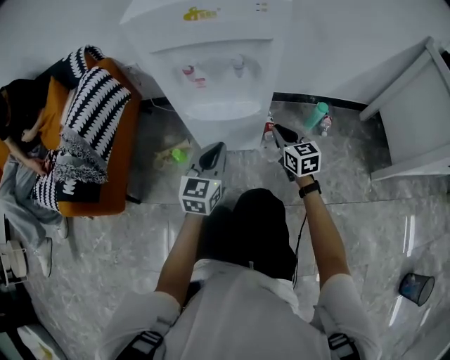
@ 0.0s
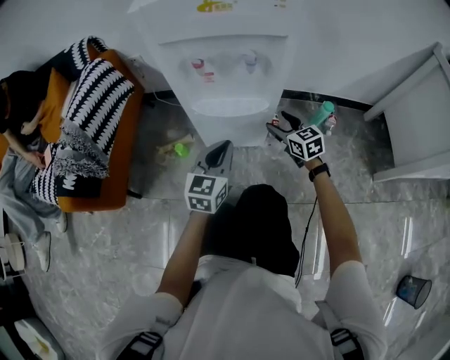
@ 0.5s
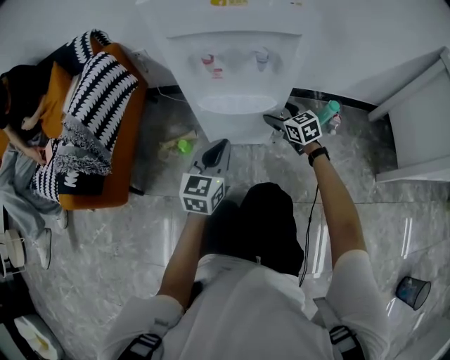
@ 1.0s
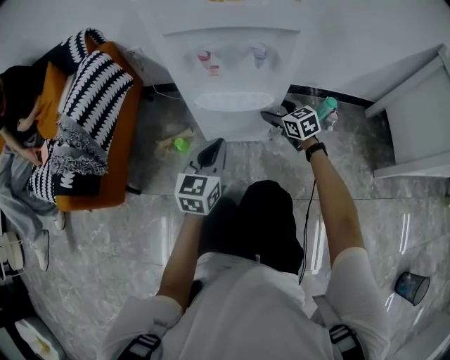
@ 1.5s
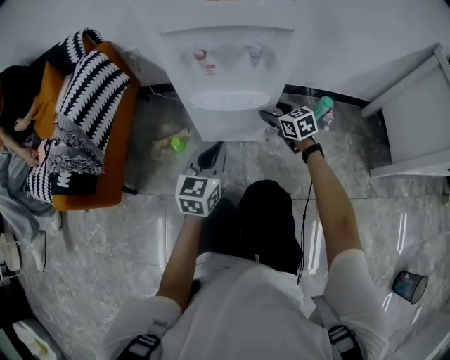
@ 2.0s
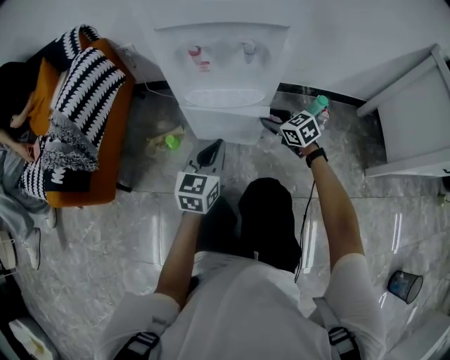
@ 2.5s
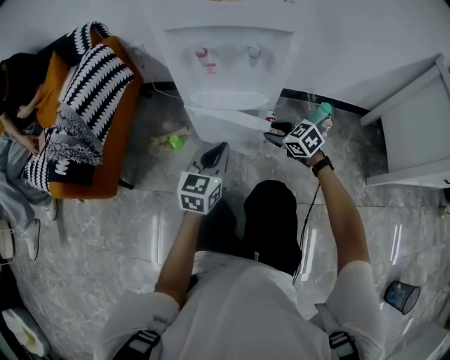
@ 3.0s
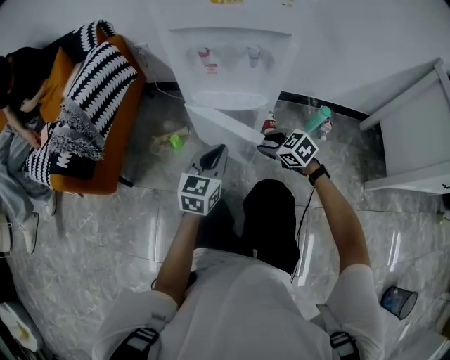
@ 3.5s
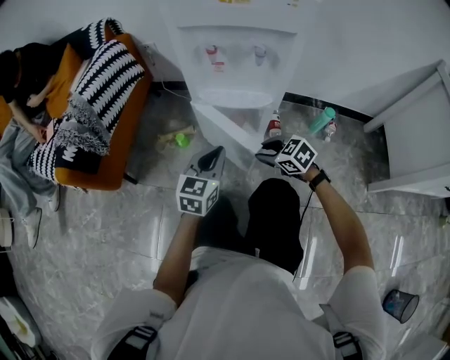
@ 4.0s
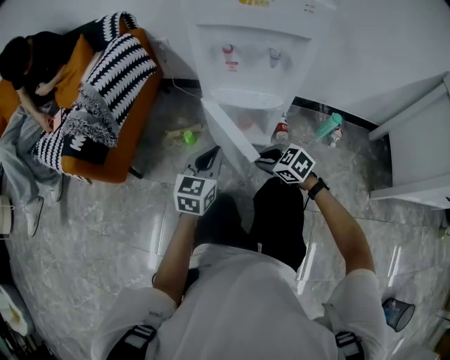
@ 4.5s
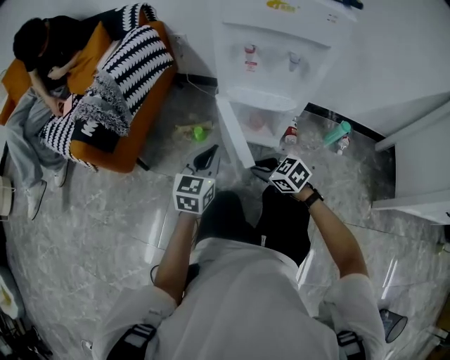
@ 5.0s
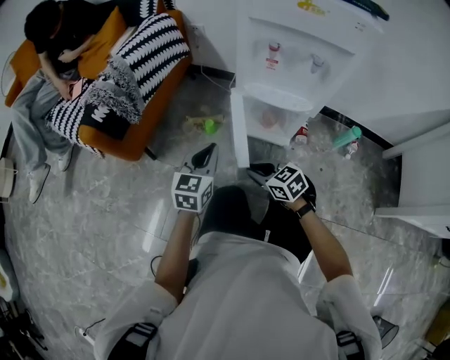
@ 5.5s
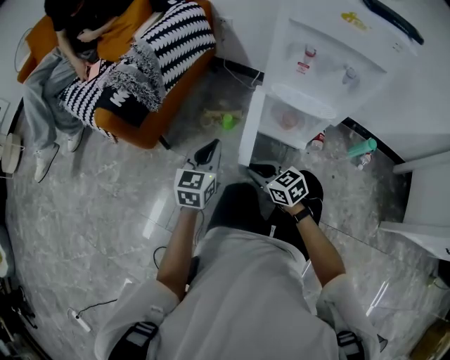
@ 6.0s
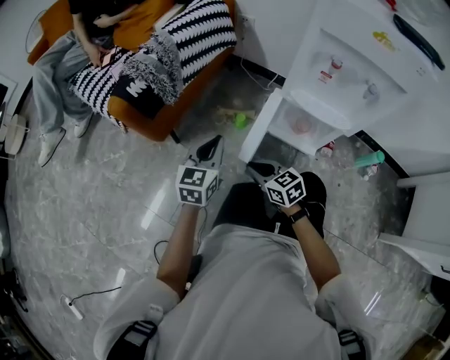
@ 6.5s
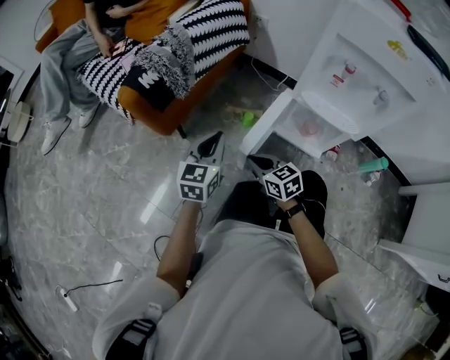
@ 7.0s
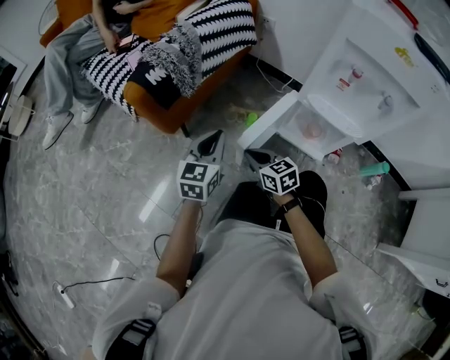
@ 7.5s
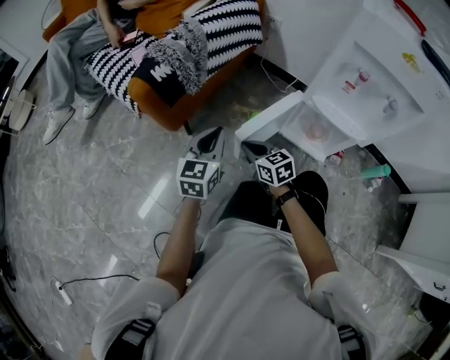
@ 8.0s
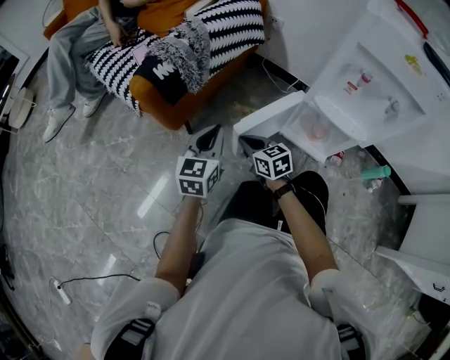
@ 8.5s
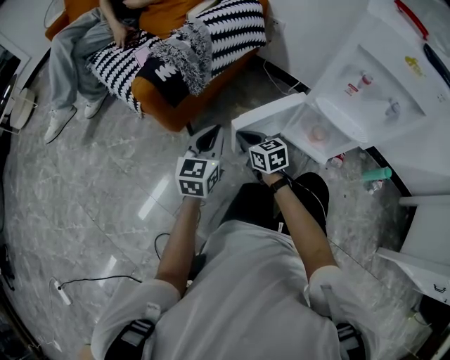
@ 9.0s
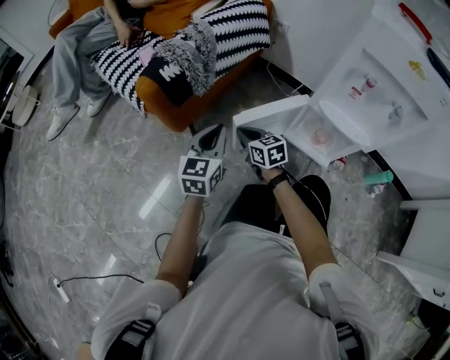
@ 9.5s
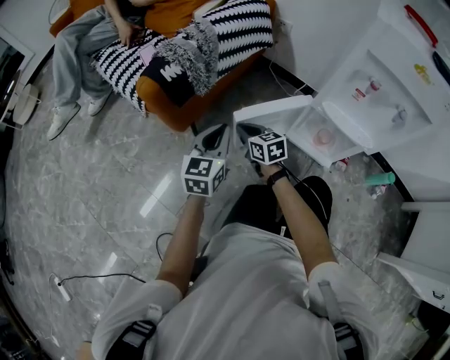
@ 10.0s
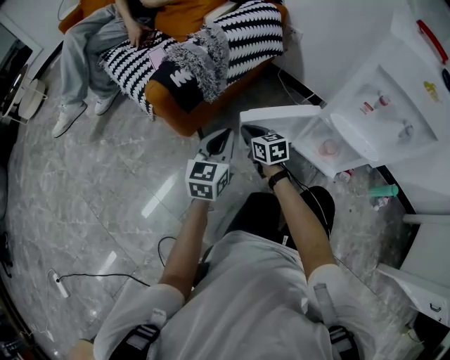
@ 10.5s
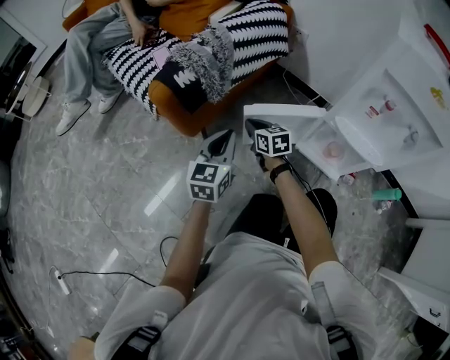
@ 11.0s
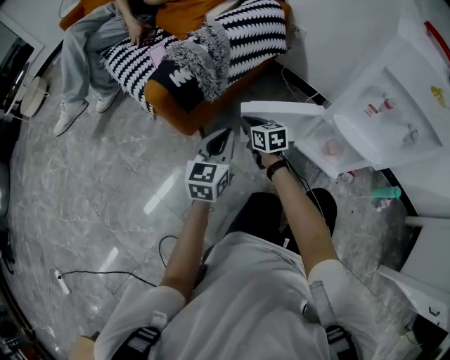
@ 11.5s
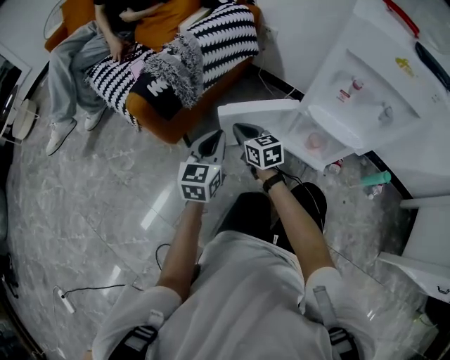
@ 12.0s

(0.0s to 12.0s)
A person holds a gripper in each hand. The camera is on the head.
0.0s - 2.0s: The right gripper heads forward, covering roughly 5 cm, and opens up.
2.0s - 4.0s: The right gripper heads backward and to the left, covering about 15 cm, turns by about 30 degrees, and closes its fingers.
4.0s - 6.0s: Both grippers move to the left, some 20 cm. The left gripper swivels roughly 20 degrees.
6.0s - 8.0s: The right gripper travels forward and to the left by about 15 cm; the left gripper goes approximately 10 cm to the left.
8.0s - 10.0s: The right gripper goes approximately 10 cm forward.
10.0s - 12.0s: The right gripper changes place by some 5 cm.

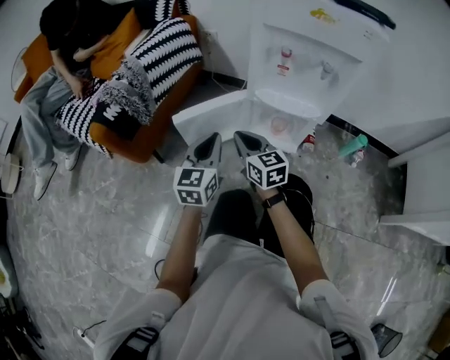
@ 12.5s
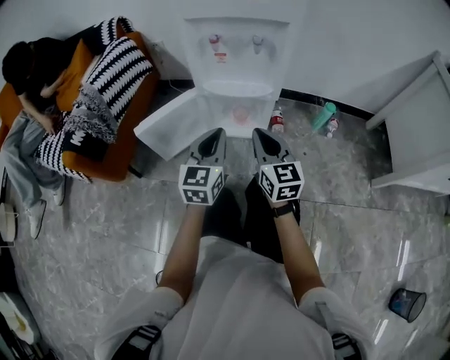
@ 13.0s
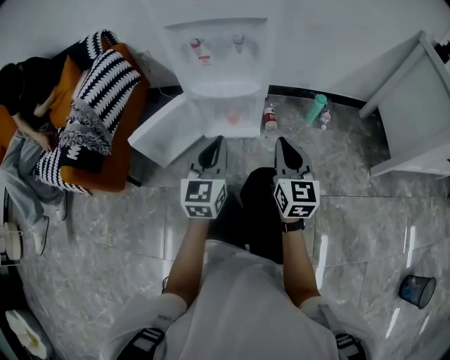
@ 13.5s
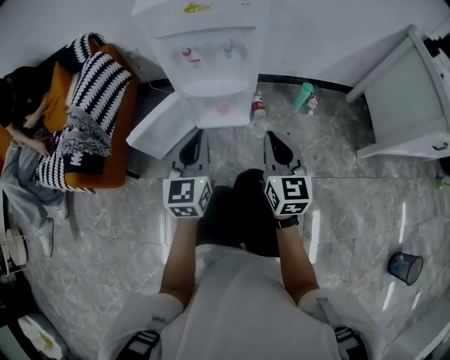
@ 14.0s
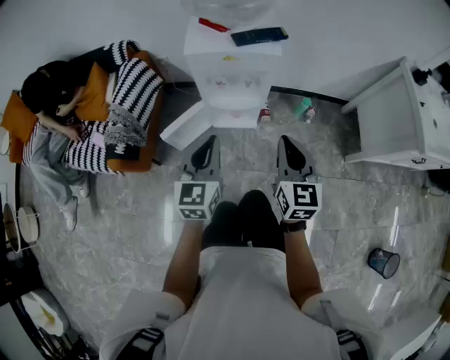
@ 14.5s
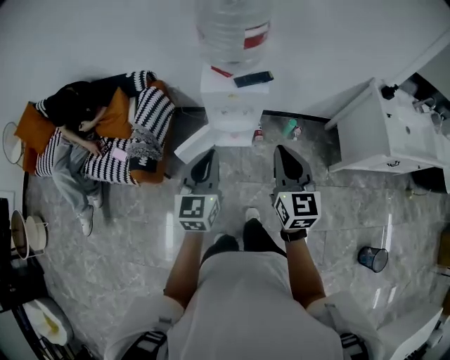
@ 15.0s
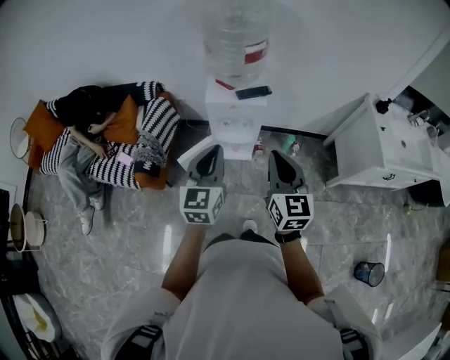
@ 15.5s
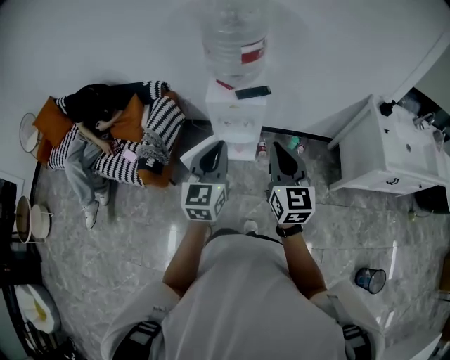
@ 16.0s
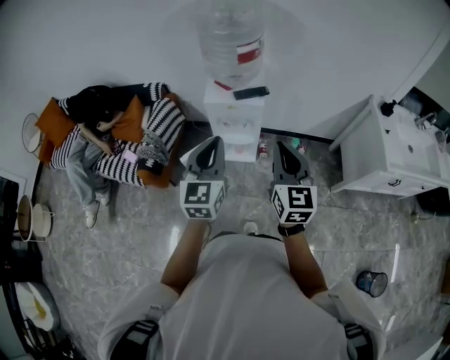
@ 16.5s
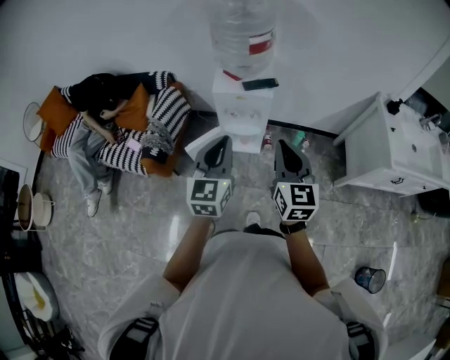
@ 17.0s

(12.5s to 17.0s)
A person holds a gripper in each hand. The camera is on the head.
12.5s - 14.5s: The two grippers go approximately 35 cm upward. The right gripper changes its angle by roughly 40 degrees.
14.5s - 17.0s: The grippers both shift upward by roughly 30 cm.

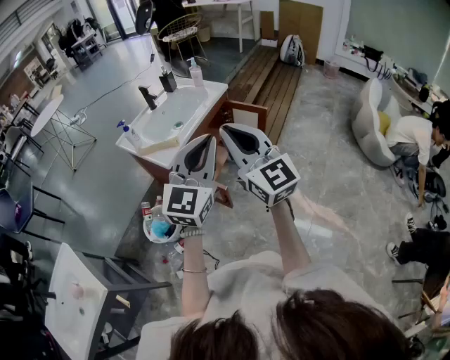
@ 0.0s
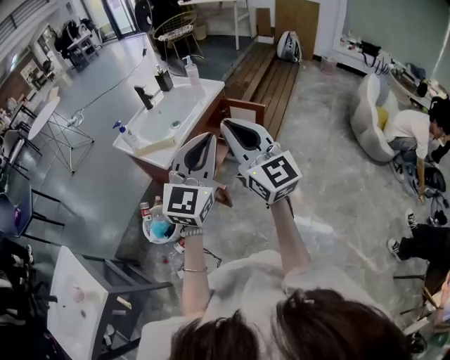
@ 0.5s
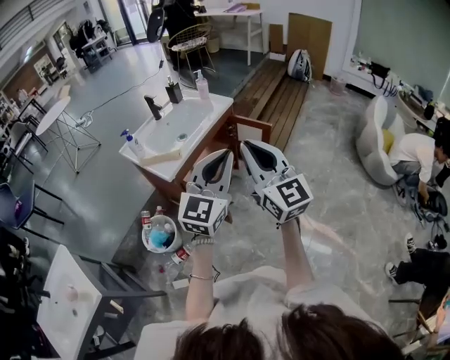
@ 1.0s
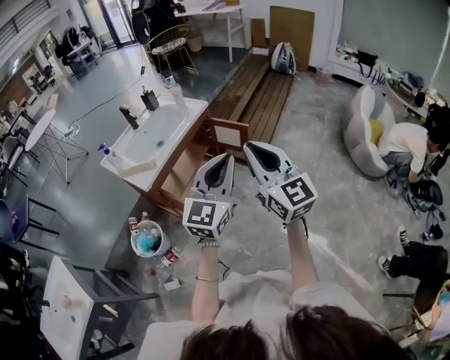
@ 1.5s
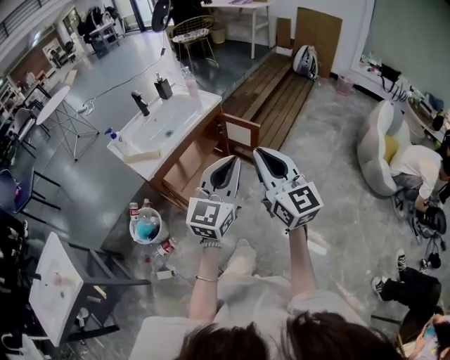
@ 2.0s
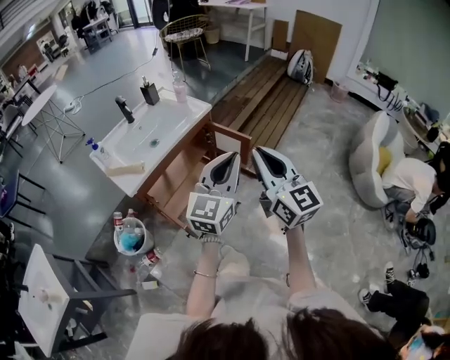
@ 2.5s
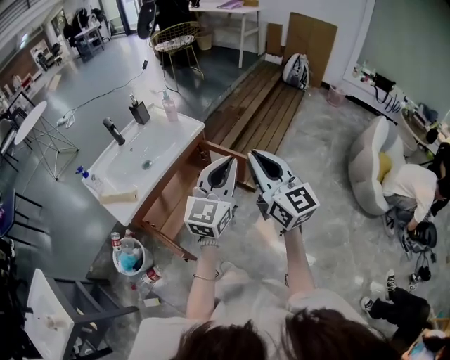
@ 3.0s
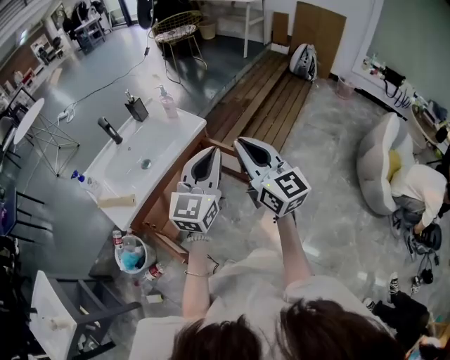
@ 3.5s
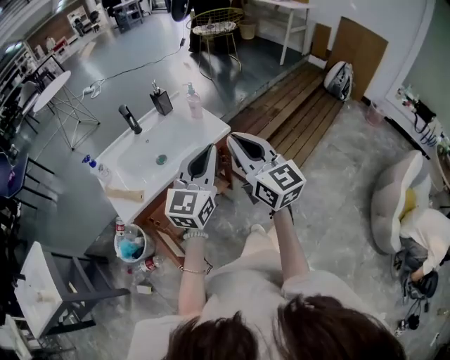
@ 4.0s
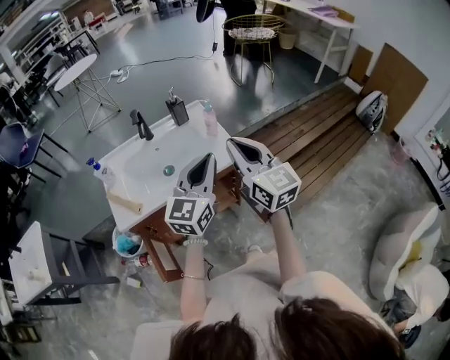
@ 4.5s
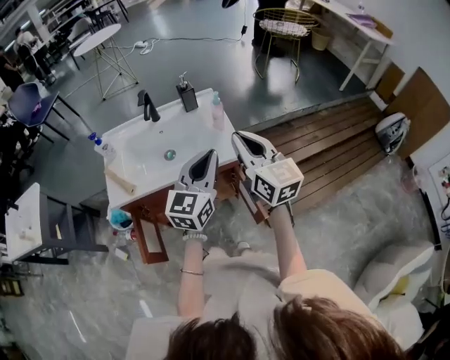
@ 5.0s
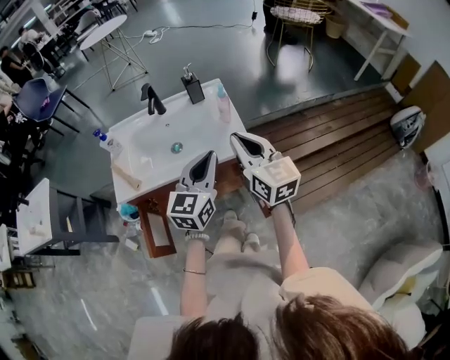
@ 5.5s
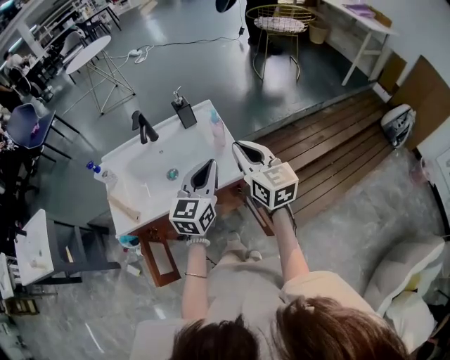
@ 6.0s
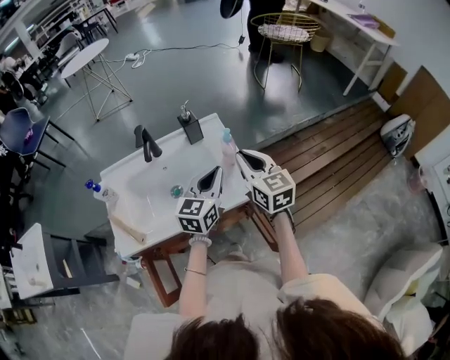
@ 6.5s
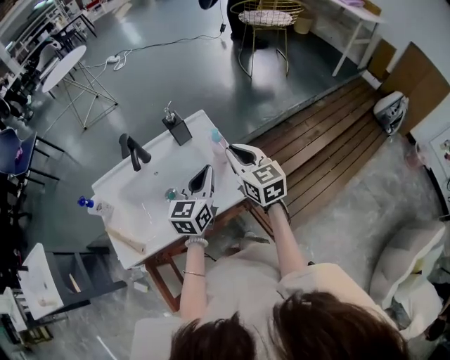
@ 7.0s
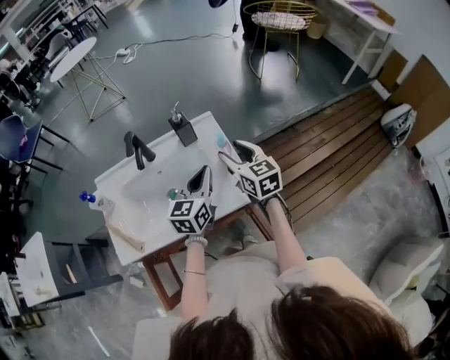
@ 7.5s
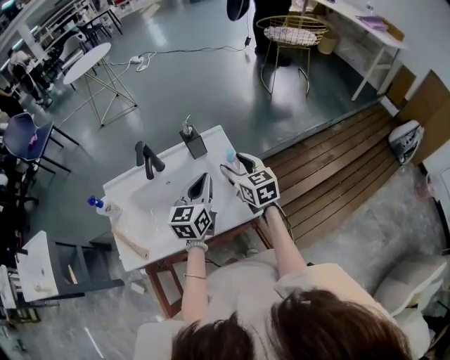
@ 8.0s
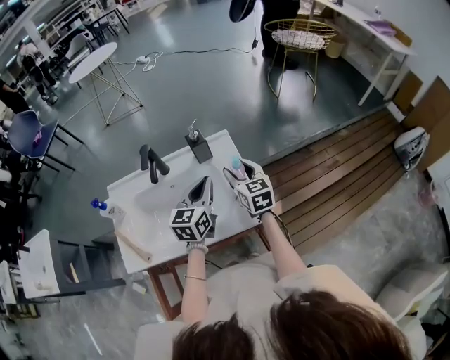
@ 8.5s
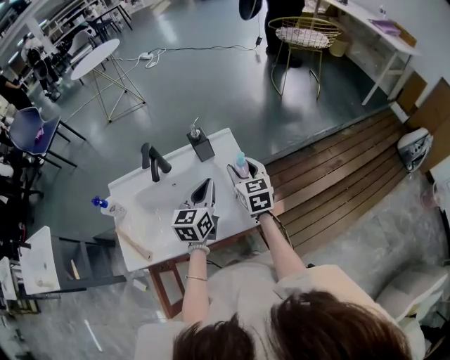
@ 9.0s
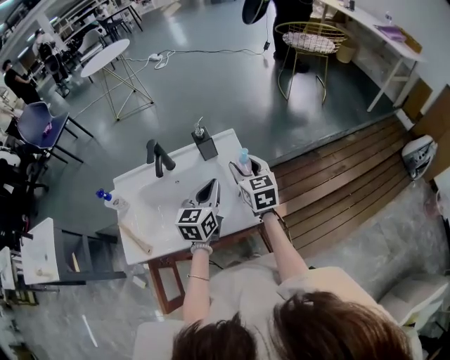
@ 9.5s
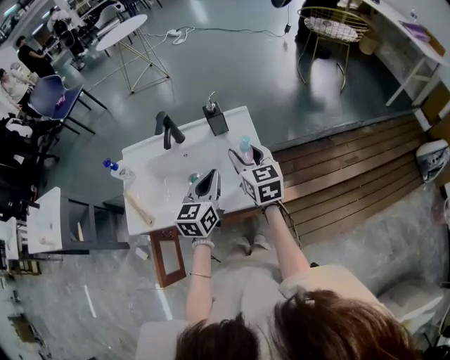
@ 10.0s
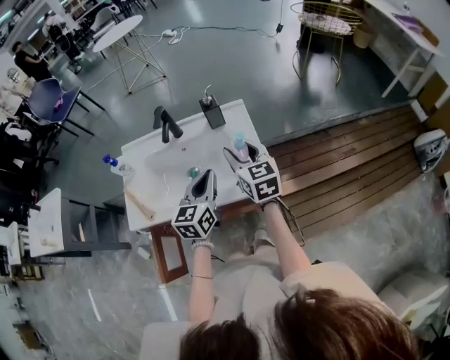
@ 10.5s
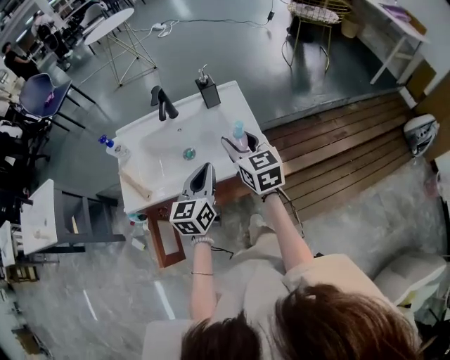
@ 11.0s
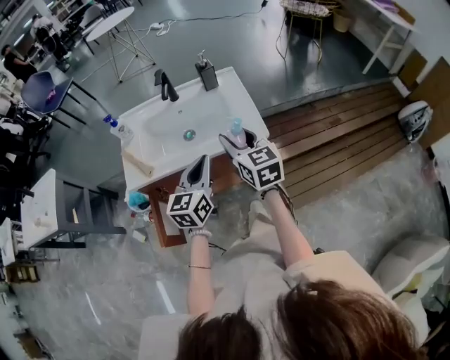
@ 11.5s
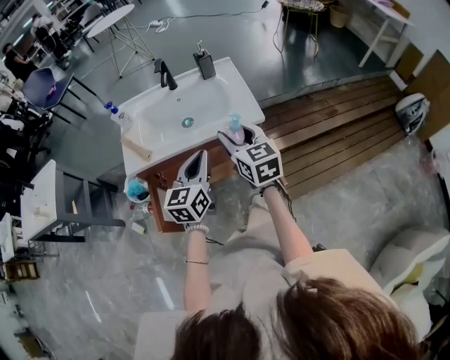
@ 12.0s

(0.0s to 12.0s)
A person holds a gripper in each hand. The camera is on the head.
0.0s - 2.0s: Both grippers travel together to the right, about 20 cm.
2.0s - 4.0s: The grippers both shift forward by approximately 35 cm. The right gripper rotates roughly 20 degrees.
4.0s - 6.0s: Both grippers move forward, approximately 20 cm. The right gripper swivels about 20 degrees, while the left gripper swivels some 30 degrees.
6.0s - 8.0s: The left gripper moves forward, downward and to the left, about 15 cm, while the right gripper moves forward and downward, some 20 cm, and opens its fingers.
8.0s - 10.0s: The right gripper ends up some 5 cm from where it was, while the left gripper moves some 5 cm.
10.0s - 12.0s: Both grippers move backward, some 25 cm.
